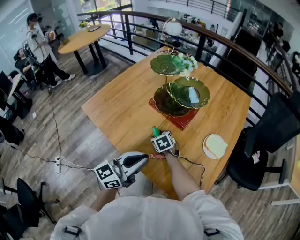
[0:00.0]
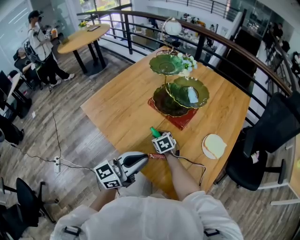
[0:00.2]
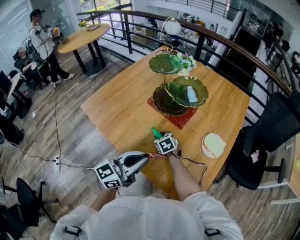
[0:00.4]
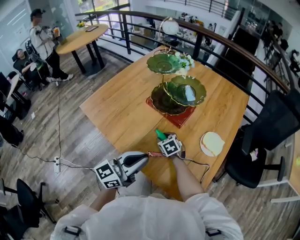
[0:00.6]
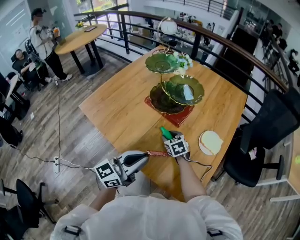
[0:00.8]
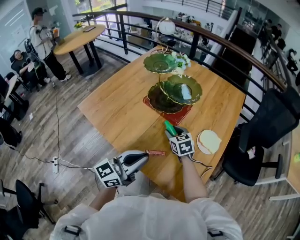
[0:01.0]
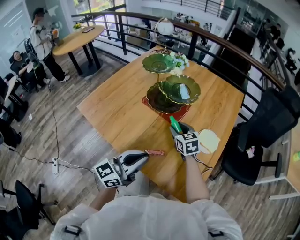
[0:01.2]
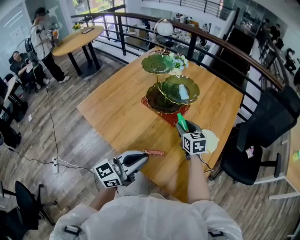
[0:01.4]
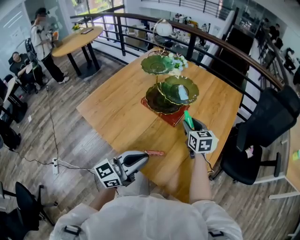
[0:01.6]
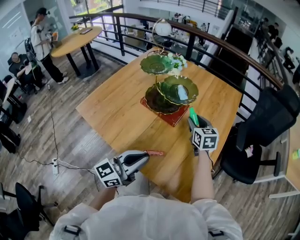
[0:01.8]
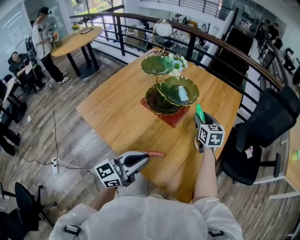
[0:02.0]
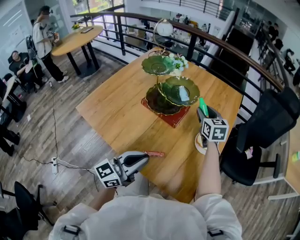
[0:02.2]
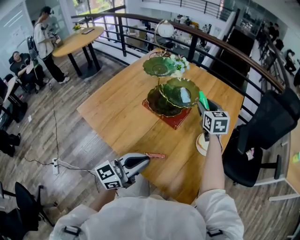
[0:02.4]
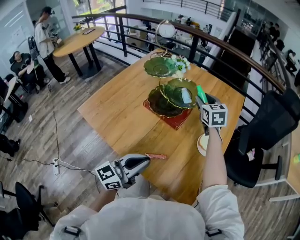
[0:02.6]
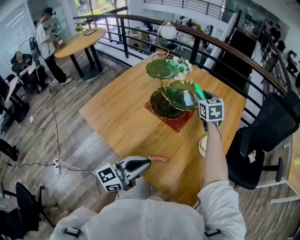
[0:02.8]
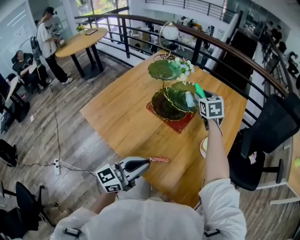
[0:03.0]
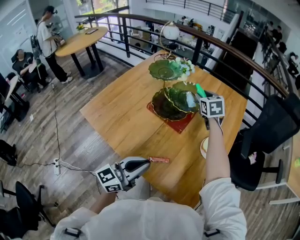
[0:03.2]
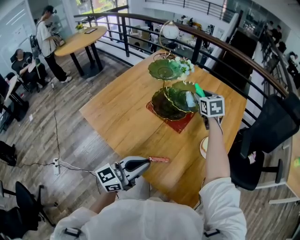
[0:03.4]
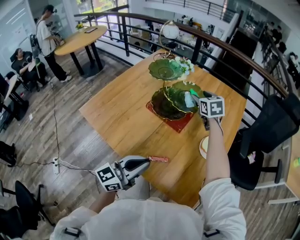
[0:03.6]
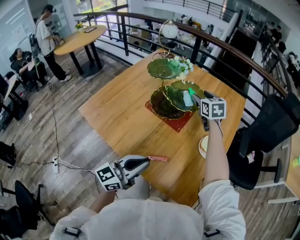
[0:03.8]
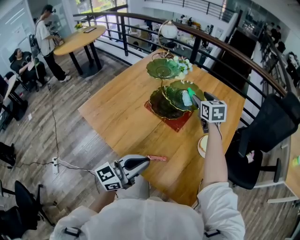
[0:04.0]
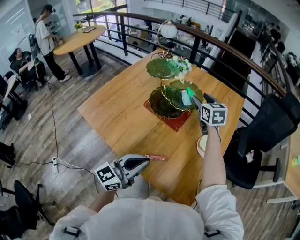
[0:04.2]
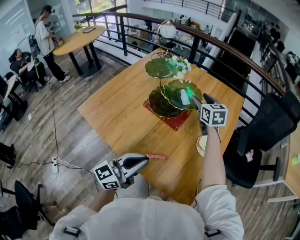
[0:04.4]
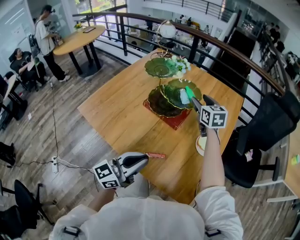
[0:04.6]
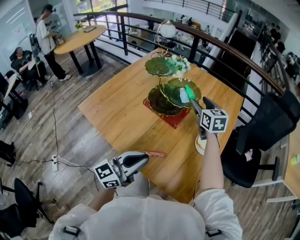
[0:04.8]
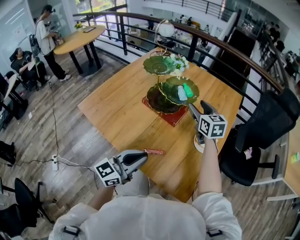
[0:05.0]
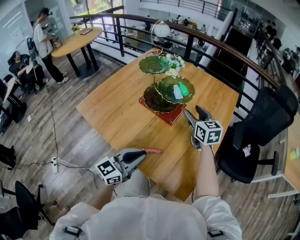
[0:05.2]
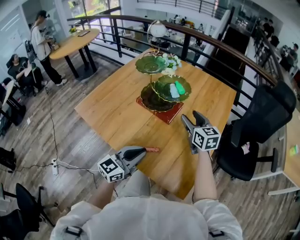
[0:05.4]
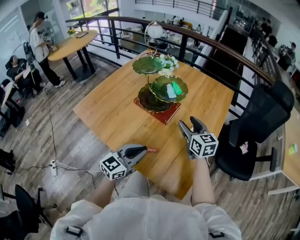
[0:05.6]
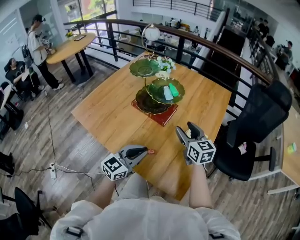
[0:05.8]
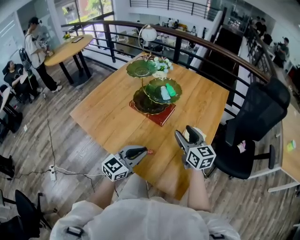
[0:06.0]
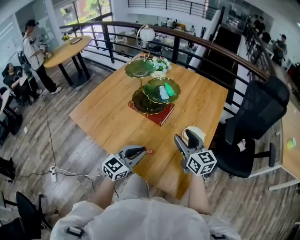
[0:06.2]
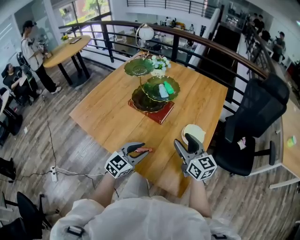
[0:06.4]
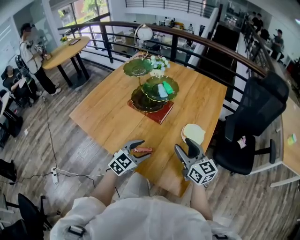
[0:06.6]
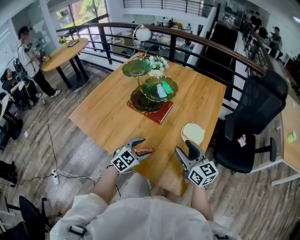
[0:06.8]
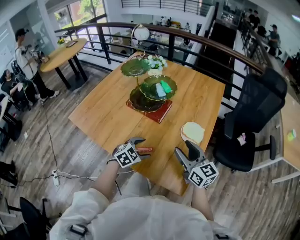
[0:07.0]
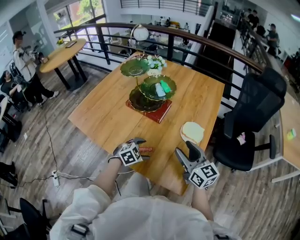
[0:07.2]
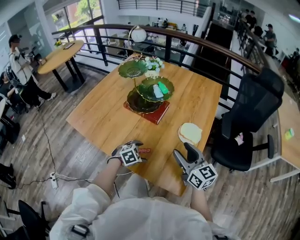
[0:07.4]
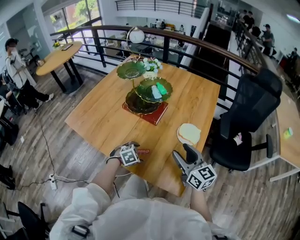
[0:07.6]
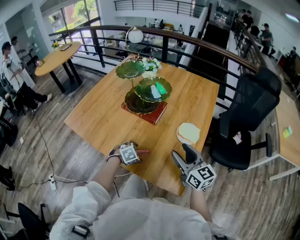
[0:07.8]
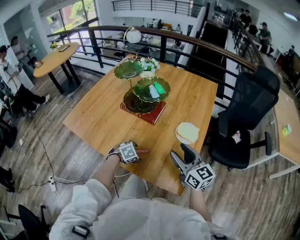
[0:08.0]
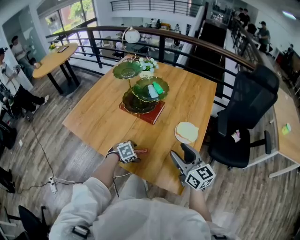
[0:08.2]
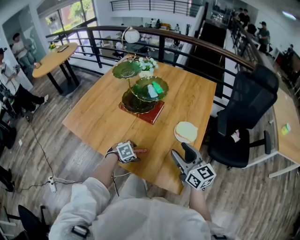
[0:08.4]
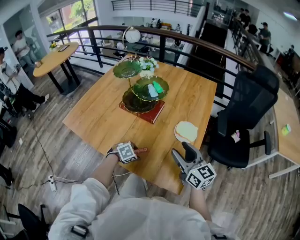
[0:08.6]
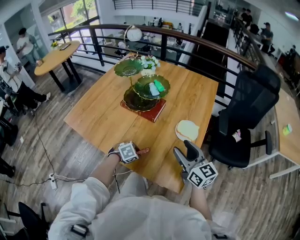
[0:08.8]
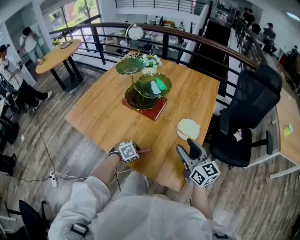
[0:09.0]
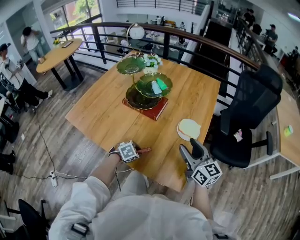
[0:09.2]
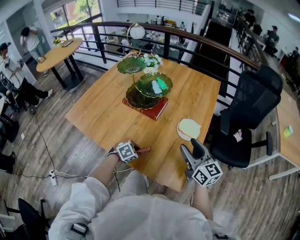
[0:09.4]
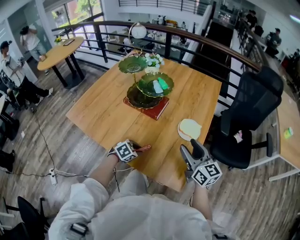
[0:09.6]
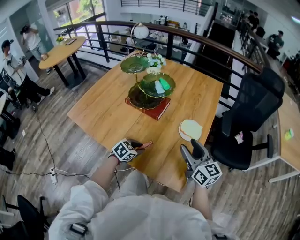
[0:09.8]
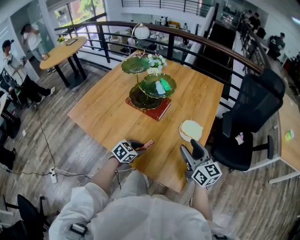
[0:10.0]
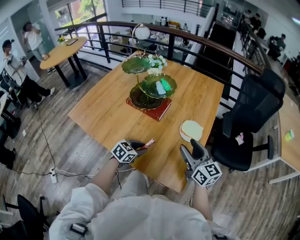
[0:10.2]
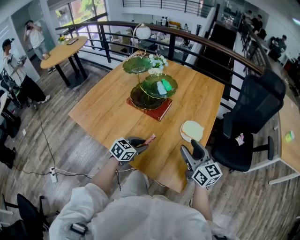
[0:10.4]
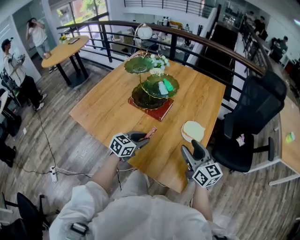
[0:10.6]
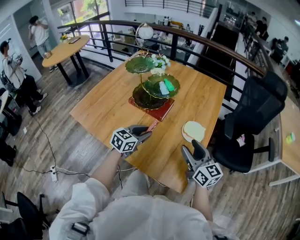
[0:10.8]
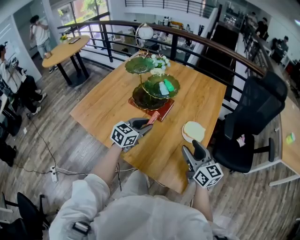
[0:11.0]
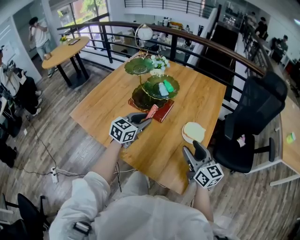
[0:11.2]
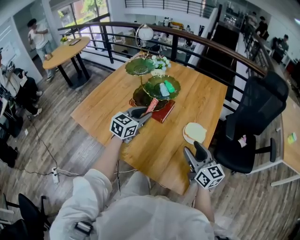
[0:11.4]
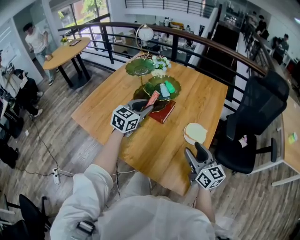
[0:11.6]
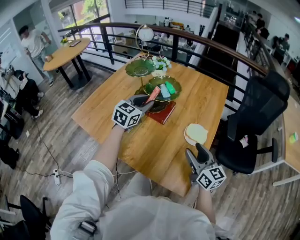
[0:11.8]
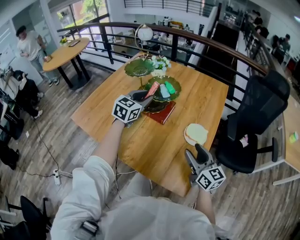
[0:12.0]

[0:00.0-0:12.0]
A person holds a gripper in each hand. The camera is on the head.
0:00.0 to 0:01.6: The right gripper heads to the right and upward, covering about 25 cm, and swivels some 30 degrees.
0:01.6 to 0:03.0: The right gripper heads forward and upward, covering approximately 15 cm.
0:03.0 to 0:04.4: The grippers stay close to where they were, moving slightly.
0:04.4 to 0:06.0: The left gripper goes roughly 10 cm downward and to the right, and swivels roughly 20 degrees; the right gripper shifts roughly 20 cm backward.
0:06.0 to 0:07.6: The left gripper moves downward, about 20 cm, tilts its fingers roughly 60 degrees downward, and opens; the right gripper shifts roughly 10 cm backward.
0:07.6 to 0:09.0: The left gripper closes its fingers.
0:09.0 to 0:10.4: The left gripper shifts approximately 10 cm upward, and points its fingers some 30 degrees further upward.
0:10.4 to 0:12.0: The left gripper is displaced forward and upward by some 25 cm, and swivels approximately 30 degrees.

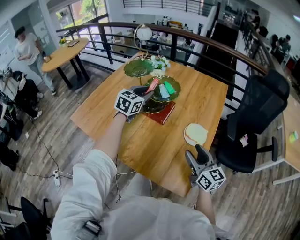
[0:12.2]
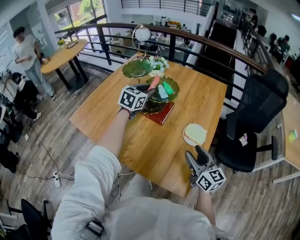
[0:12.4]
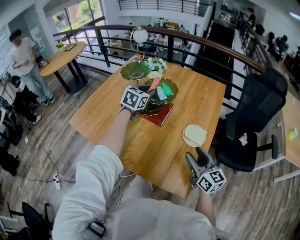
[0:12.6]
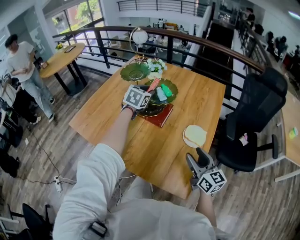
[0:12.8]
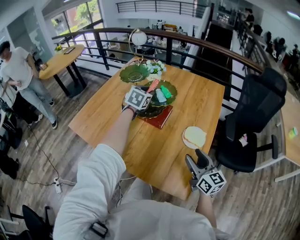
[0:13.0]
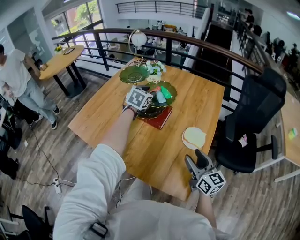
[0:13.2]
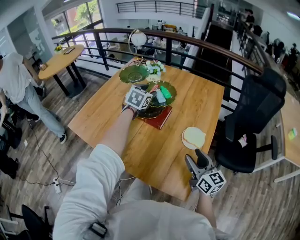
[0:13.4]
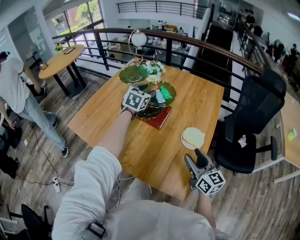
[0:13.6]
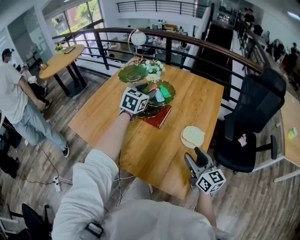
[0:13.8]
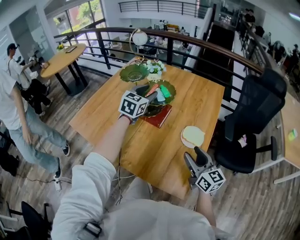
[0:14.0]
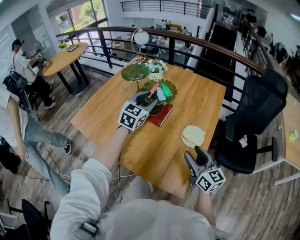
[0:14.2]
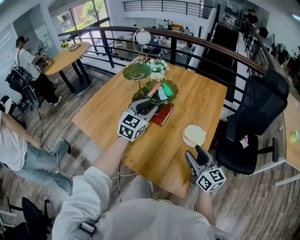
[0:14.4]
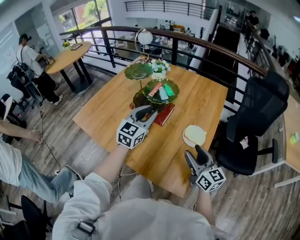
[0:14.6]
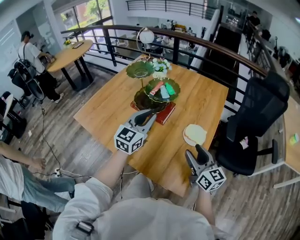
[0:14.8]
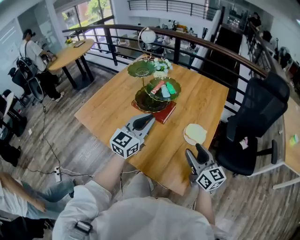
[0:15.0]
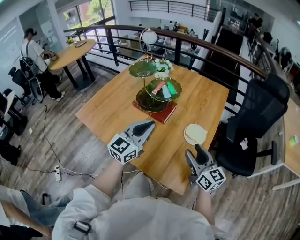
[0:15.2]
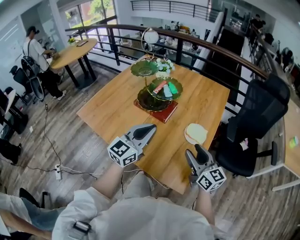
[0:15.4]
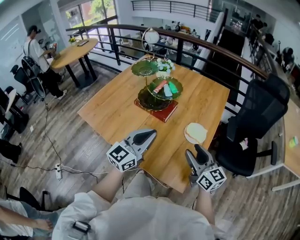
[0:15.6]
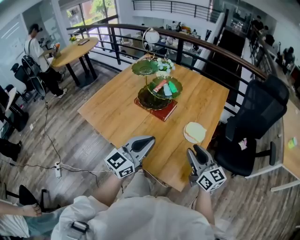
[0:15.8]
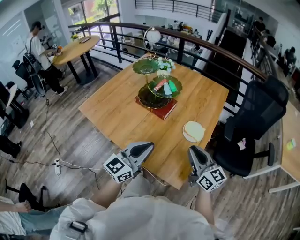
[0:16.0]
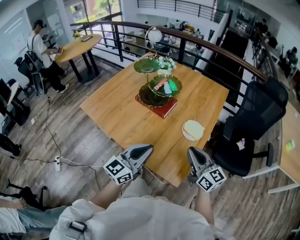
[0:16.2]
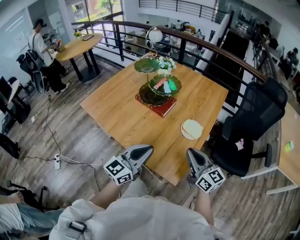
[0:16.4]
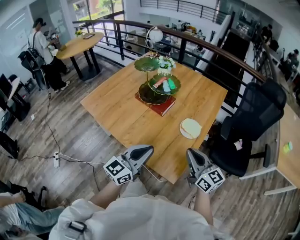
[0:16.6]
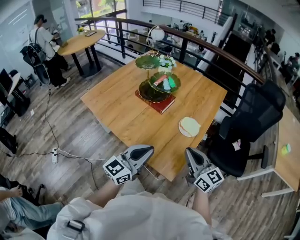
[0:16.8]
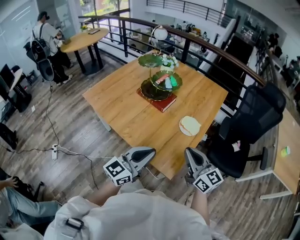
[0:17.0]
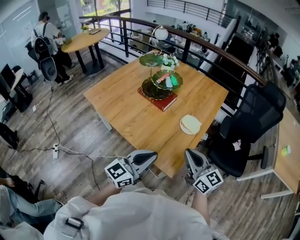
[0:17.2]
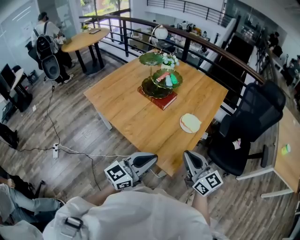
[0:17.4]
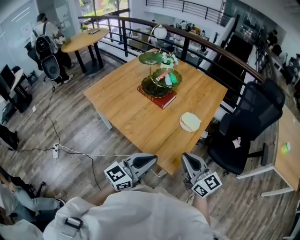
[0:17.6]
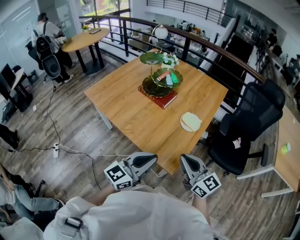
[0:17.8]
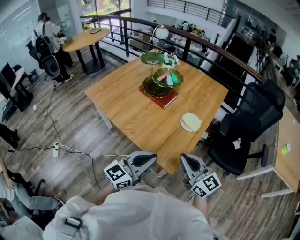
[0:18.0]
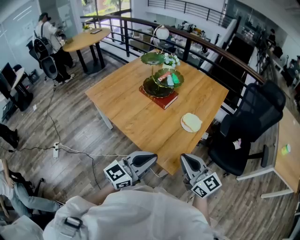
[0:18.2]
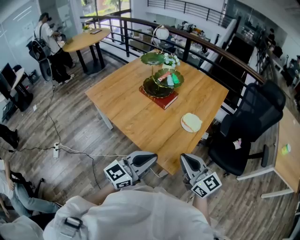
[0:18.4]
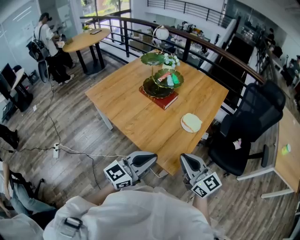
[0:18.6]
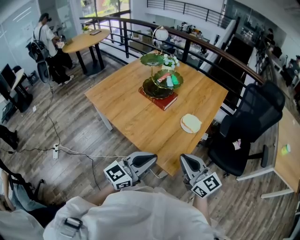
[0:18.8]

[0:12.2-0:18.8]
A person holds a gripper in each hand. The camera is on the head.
0:13.8 to 0:15.4: The left gripper shifts roughly 25 cm backward, turns by some 30 degrees, and closes up.
0:15.4 to 0:17.2: The right gripper heads backward and upward, covering about 15 cm, and closes; the left gripper shifts about 20 cm backward.
0:17.2 to 0:18.8: The right gripper ends up about 5 cm from where it was.

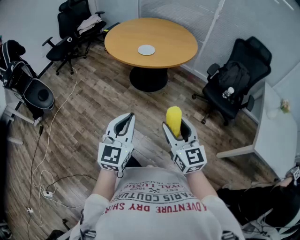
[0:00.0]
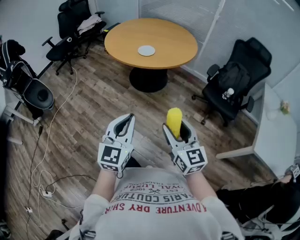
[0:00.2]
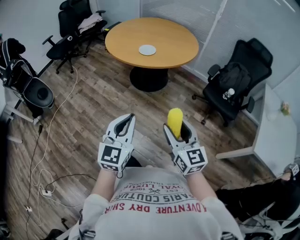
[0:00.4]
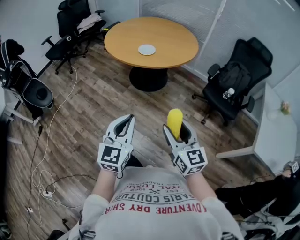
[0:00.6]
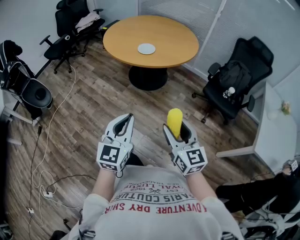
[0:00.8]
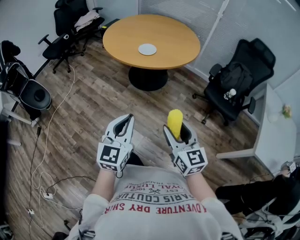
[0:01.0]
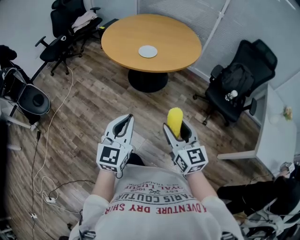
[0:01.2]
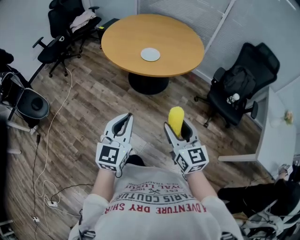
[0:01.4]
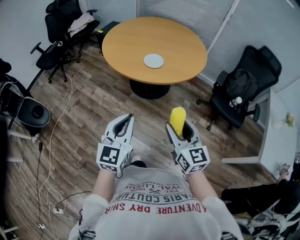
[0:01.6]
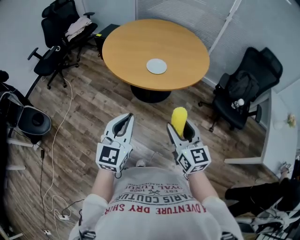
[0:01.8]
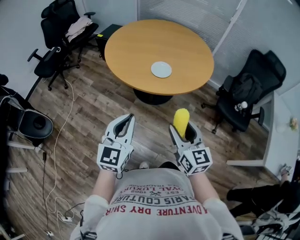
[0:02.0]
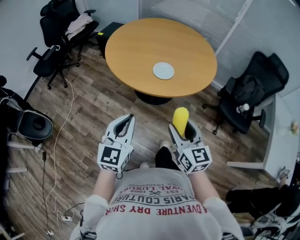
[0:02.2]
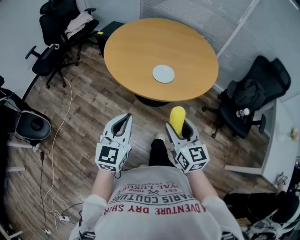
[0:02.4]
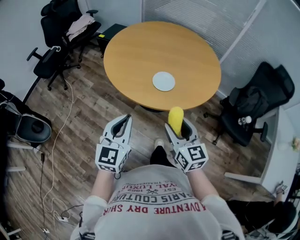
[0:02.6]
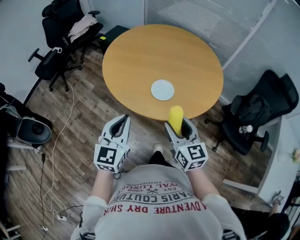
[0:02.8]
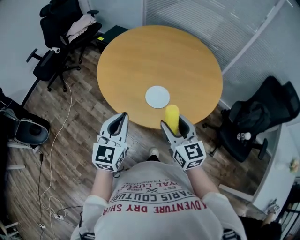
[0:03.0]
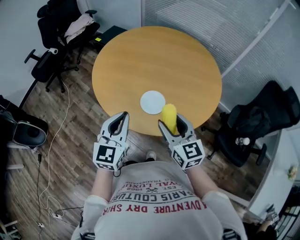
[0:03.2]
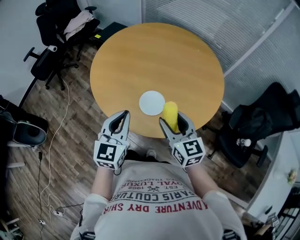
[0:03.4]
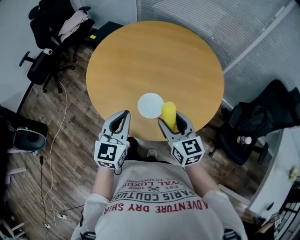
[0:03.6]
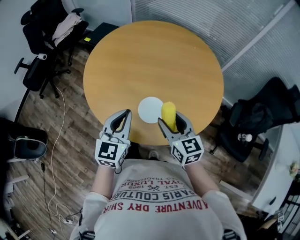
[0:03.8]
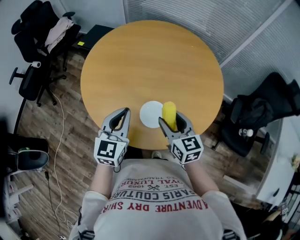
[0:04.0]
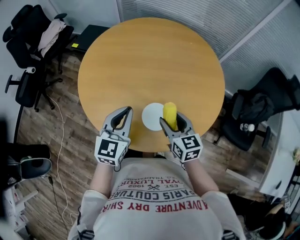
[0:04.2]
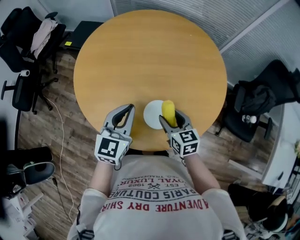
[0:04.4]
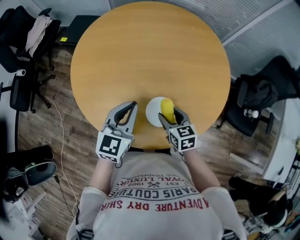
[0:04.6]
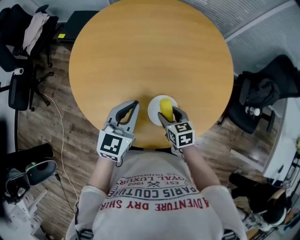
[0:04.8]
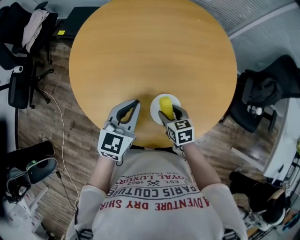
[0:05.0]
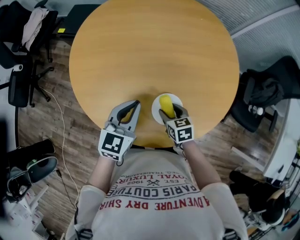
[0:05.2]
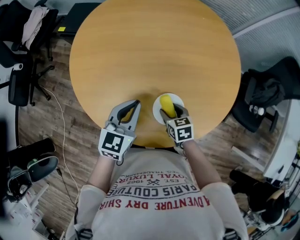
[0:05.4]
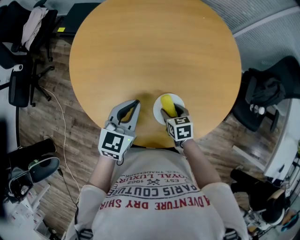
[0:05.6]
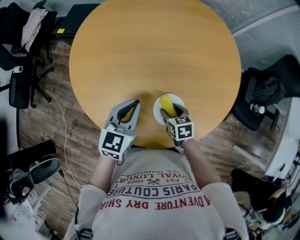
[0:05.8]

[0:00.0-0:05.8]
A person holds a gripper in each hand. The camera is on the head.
0:00.0 to 0:01.4: The left gripper shifts roughly 15 cm forward and to the left. The right gripper goes some 15 cm forward.
0:01.4 to 0:02.8: Both grippers travel together forward, roughly 30 cm.
0:02.8 to 0:04.4: The left gripper is displaced forward by roughly 30 cm; the right gripper travels forward and downward by about 30 cm, and changes its angle by approximately 20 degrees.
0:04.4 to 0:05.8: The left gripper moves downward, approximately 10 cm; the right gripper heads downward, covering approximately 15 cm, and changes its angle by approximately 20 degrees.
